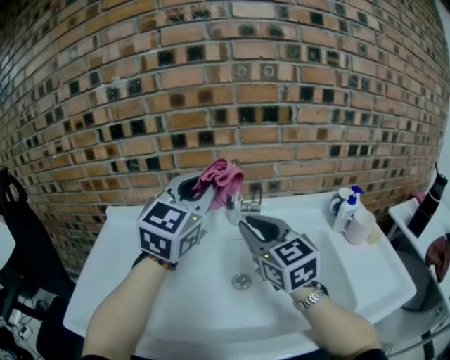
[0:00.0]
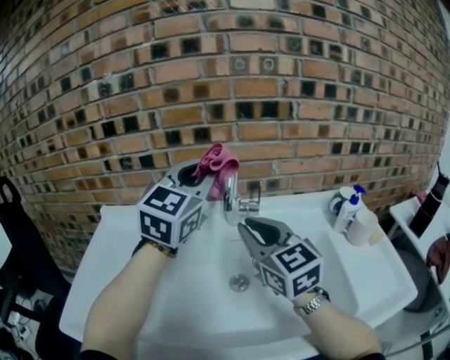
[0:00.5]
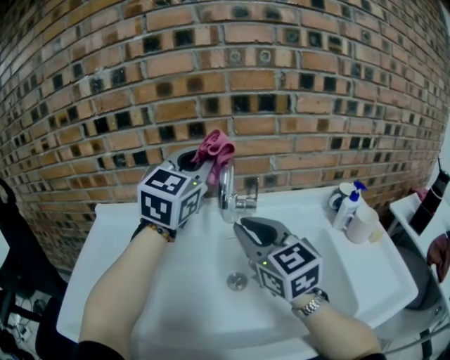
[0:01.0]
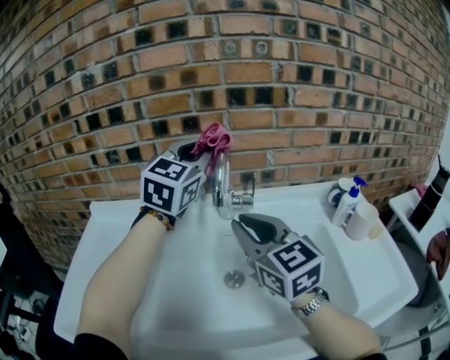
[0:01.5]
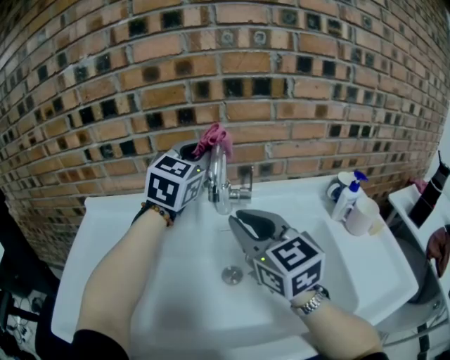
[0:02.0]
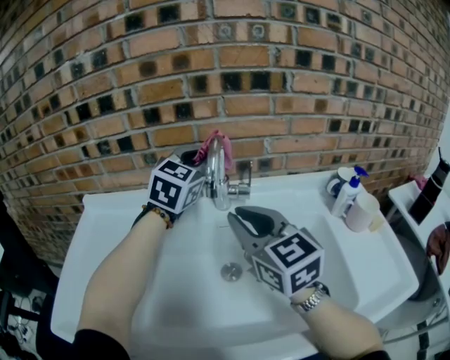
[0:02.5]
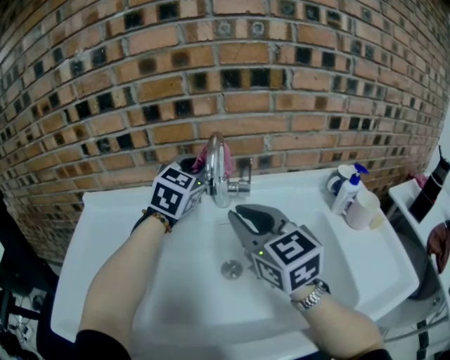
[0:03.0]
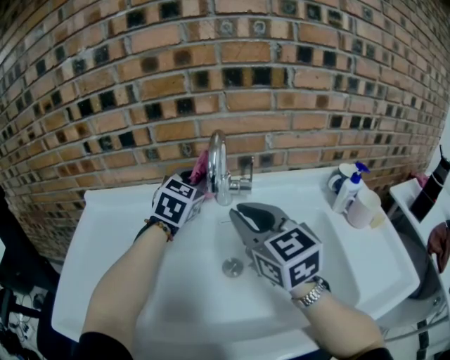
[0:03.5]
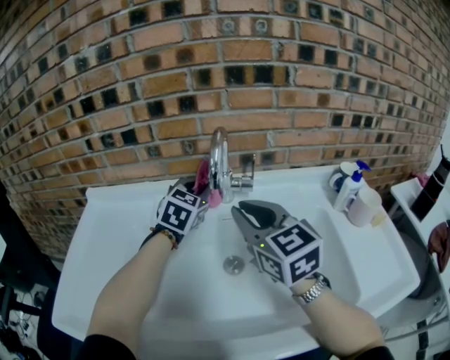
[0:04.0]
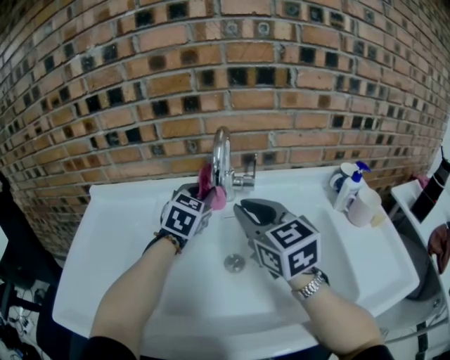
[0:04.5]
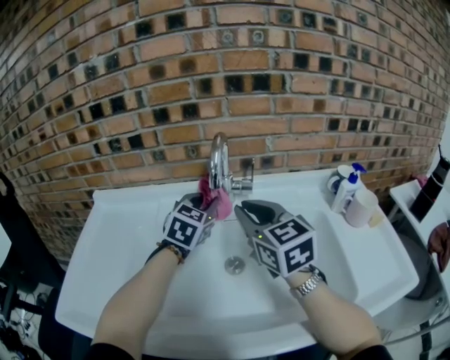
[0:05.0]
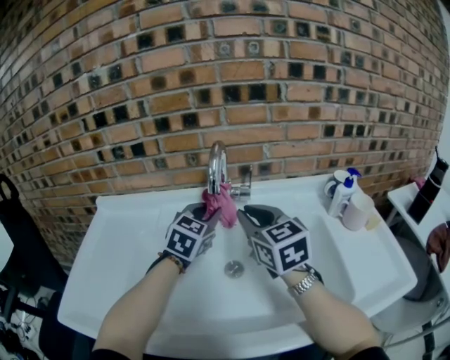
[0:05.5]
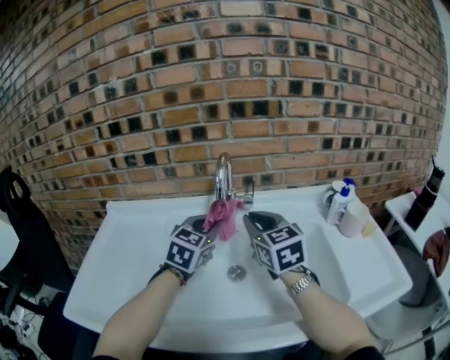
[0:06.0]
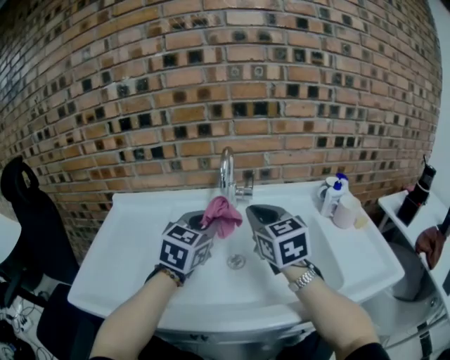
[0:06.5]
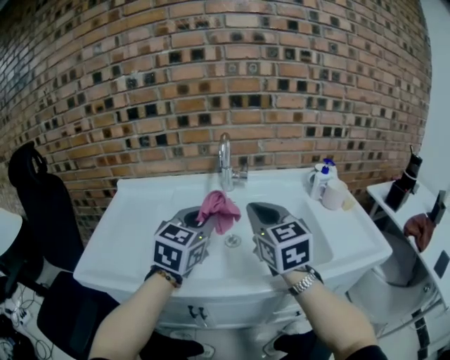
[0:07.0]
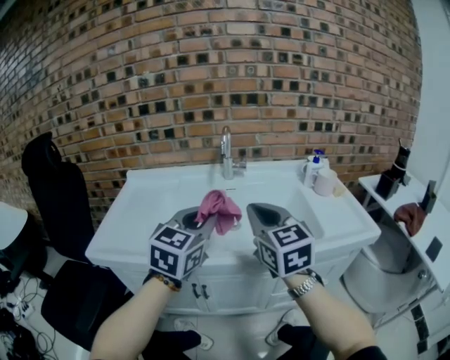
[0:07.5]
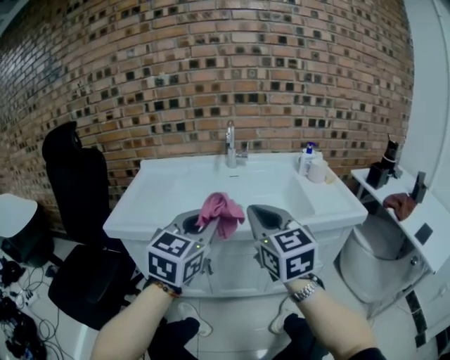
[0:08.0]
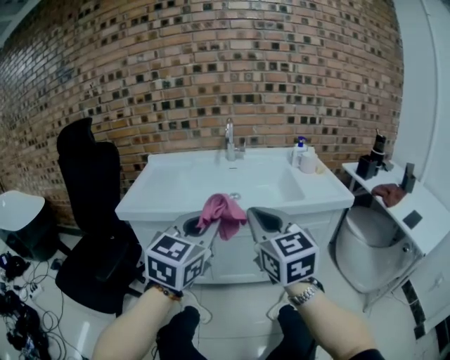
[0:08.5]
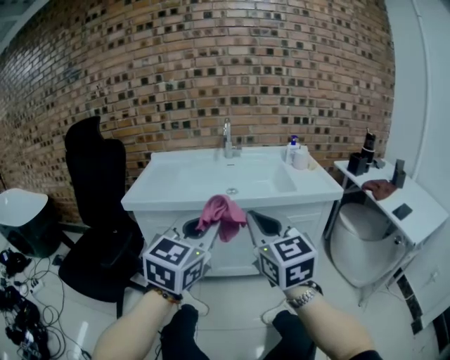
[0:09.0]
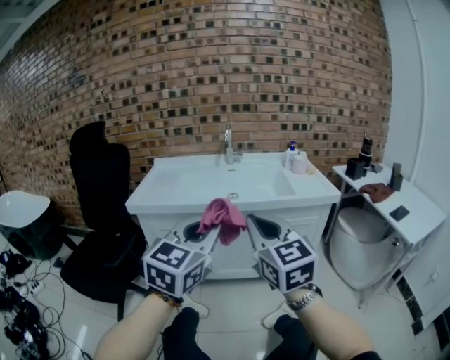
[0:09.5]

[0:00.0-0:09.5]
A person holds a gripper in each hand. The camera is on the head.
0:00.0 to 0:02.0: The left gripper heads forward, covering approximately 15 cm.
0:02.0 to 0:04.0: The left gripper is displaced downward by about 15 cm.
0:04.0 to 0:05.5: The left gripper heads backward, covering some 5 cm.
0:05.5 to 0:07.5: The two grippers go approximately 30 cm backward.
0:07.5 to 0:09.5: The two grippers go some 40 cm backward.

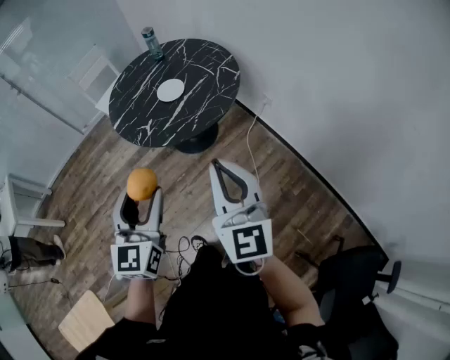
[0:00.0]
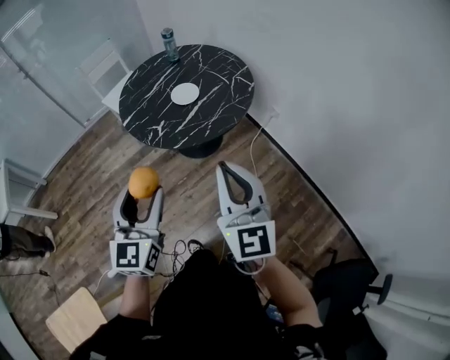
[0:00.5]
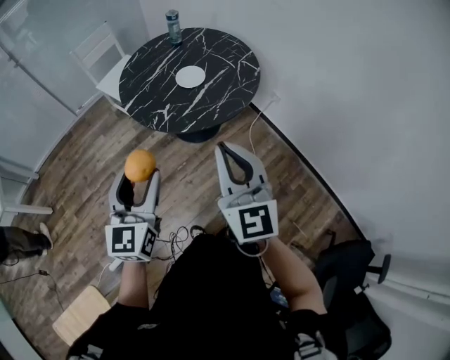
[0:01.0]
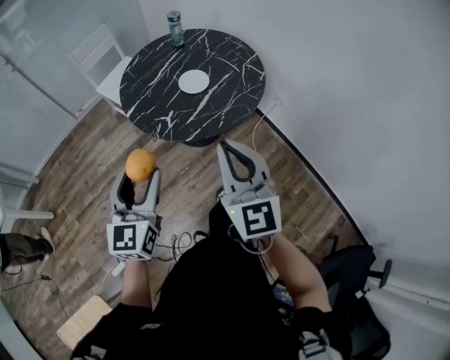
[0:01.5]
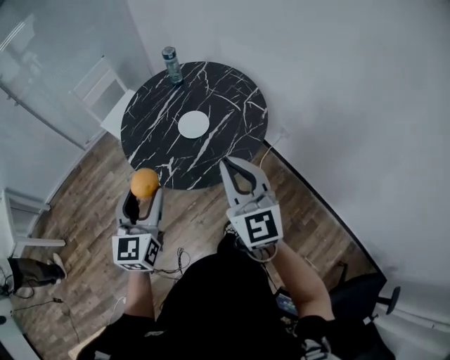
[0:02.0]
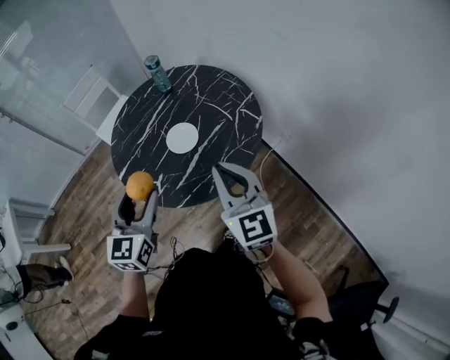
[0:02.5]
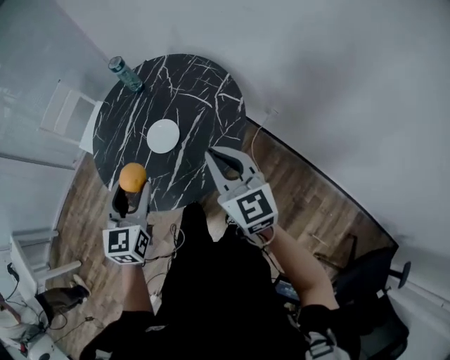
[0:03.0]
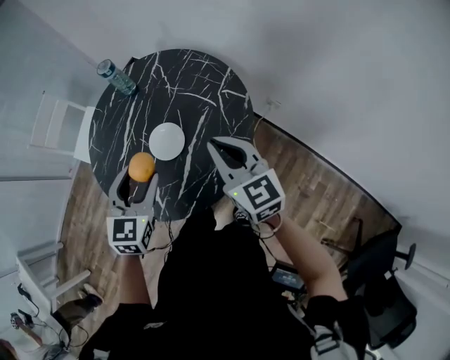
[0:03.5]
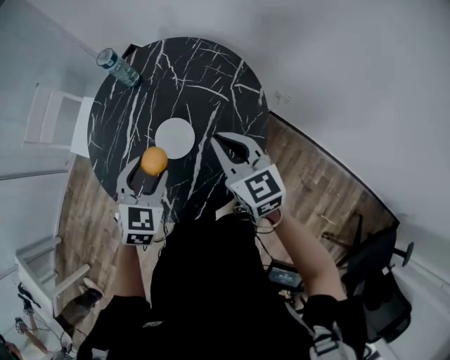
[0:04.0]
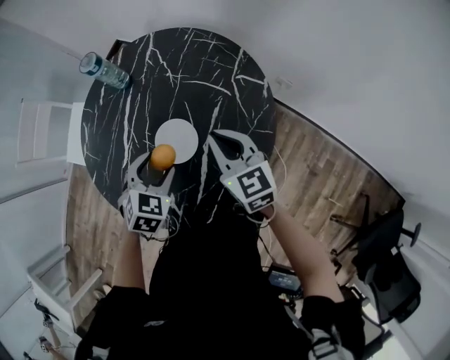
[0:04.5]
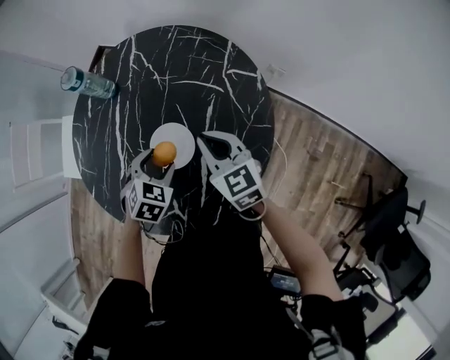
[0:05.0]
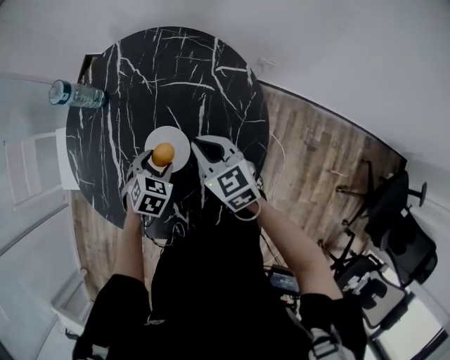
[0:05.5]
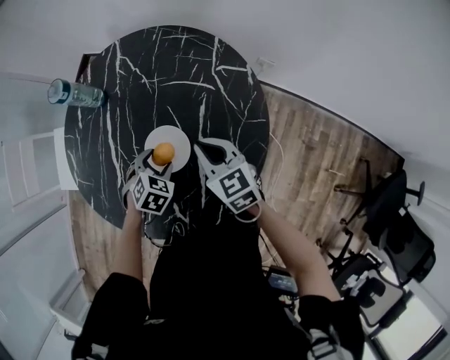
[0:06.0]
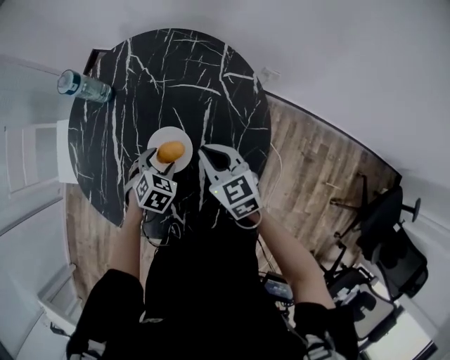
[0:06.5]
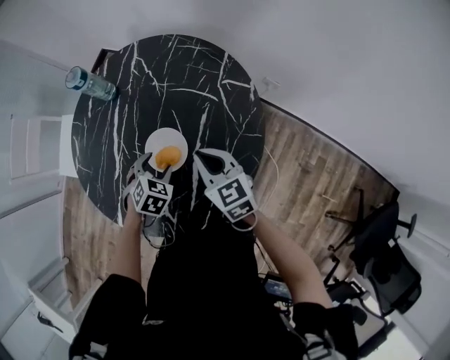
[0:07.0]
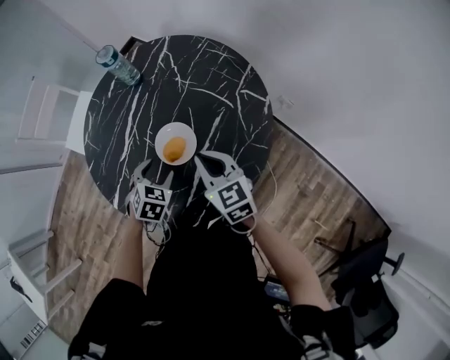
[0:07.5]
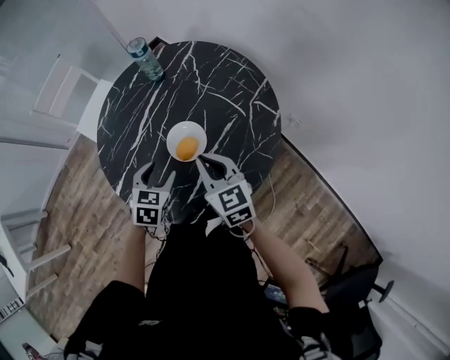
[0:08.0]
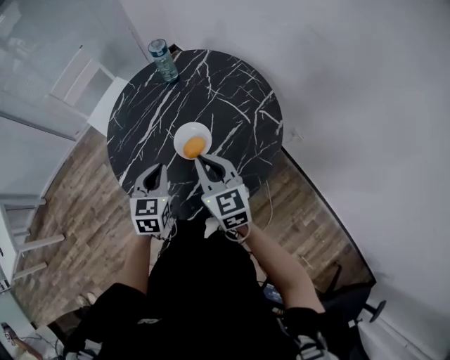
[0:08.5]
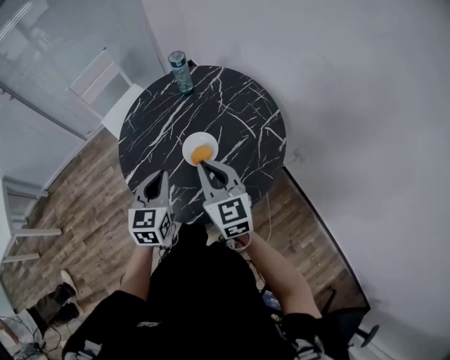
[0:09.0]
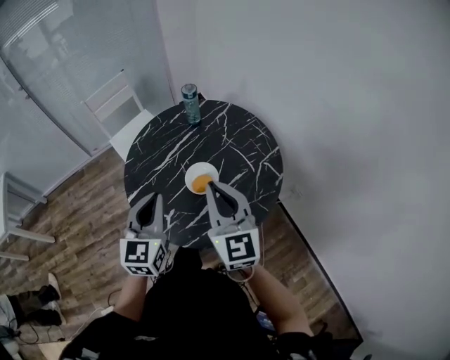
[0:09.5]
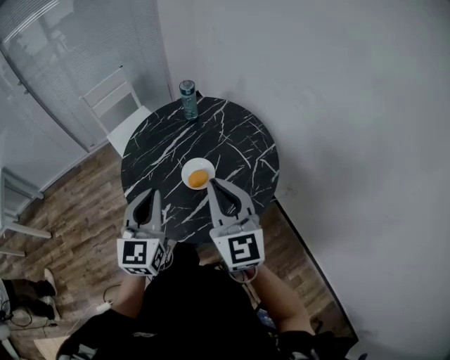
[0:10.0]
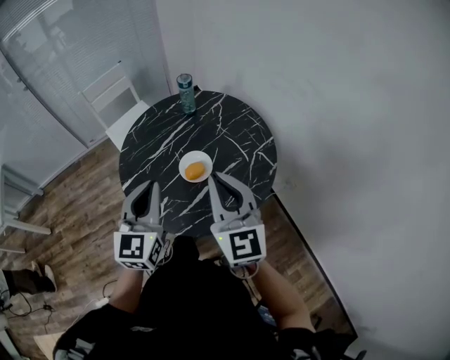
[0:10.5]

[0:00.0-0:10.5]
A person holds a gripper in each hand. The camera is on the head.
0:00.0 to 0:02.0: The grippers both shift forward and to the left by approximately 25 cm.
0:02.0 to 0:04.0: Both grippers travel together forward and downward, some 35 cm. The left gripper tilts its fingers some 30 degrees downward, while the right gripper turns by roughly 20 degrees.
0:04.0 to 0:06.5: The right gripper goes roughly 15 cm downward, while the left gripper shifts roughly 20 cm downward, and rotates about 30 degrees.
0:06.5 to 0:08.5: The two grippers go roughly 15 cm upward. The left gripper tilts its fingers approximately 30 degrees upward, and closes. Meanwhile the right gripper changes its angle by about 30 degrees.
0:08.5 to 0:10.5: The two grippers go some 20 cm upward and backward. The left gripper rotates about 30 degrees. Meanwhile the right gripper swivels approximately 20 degrees.

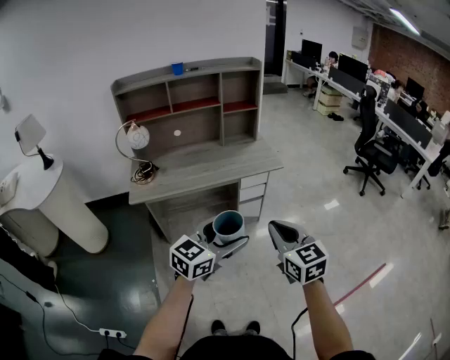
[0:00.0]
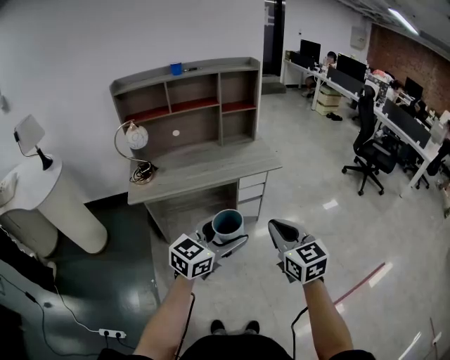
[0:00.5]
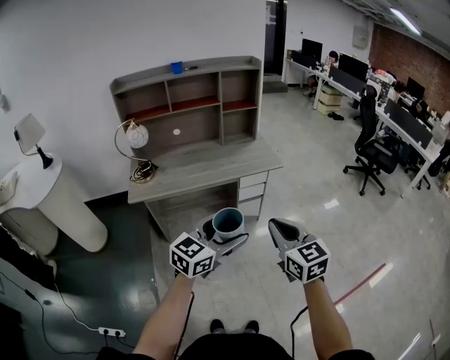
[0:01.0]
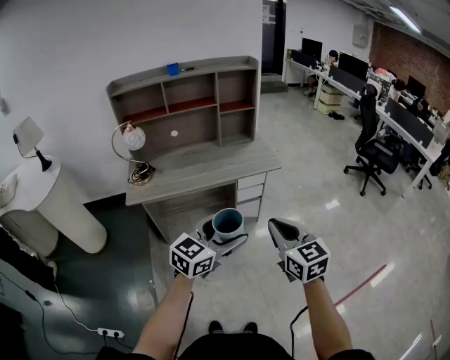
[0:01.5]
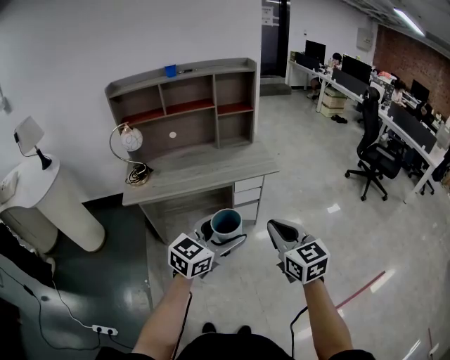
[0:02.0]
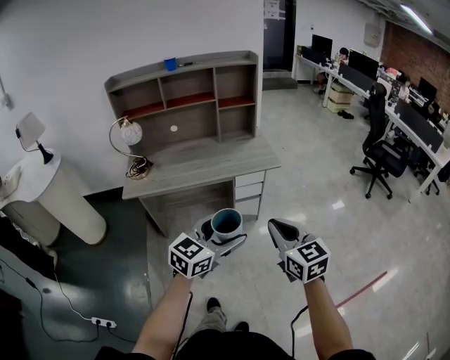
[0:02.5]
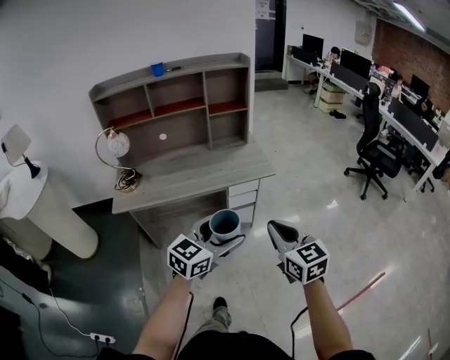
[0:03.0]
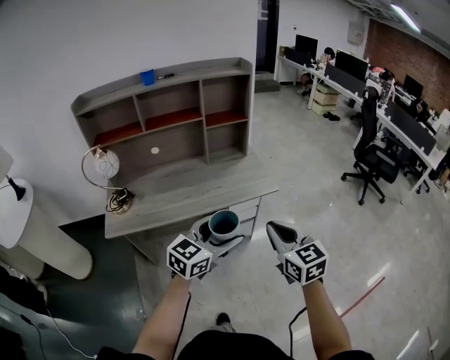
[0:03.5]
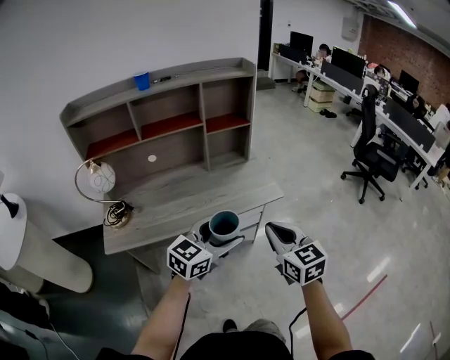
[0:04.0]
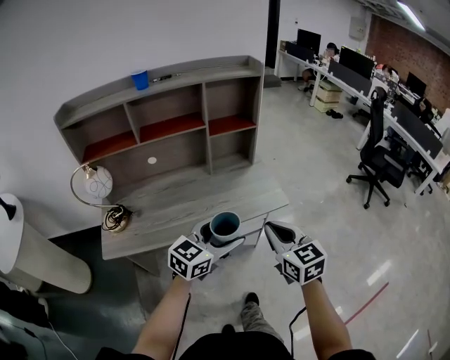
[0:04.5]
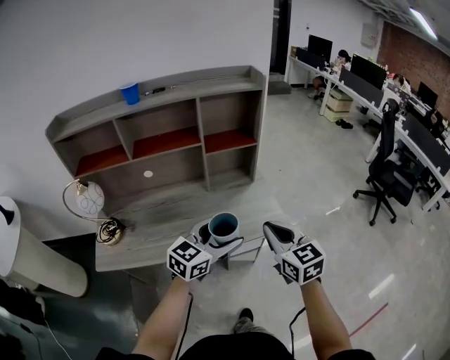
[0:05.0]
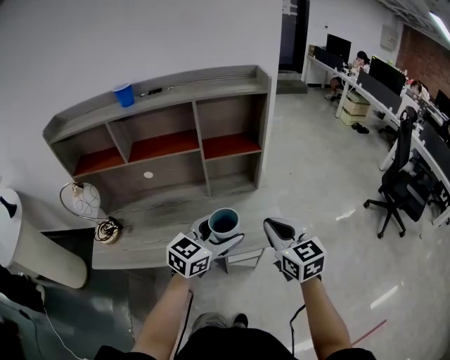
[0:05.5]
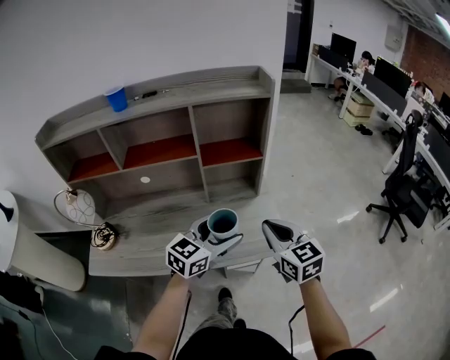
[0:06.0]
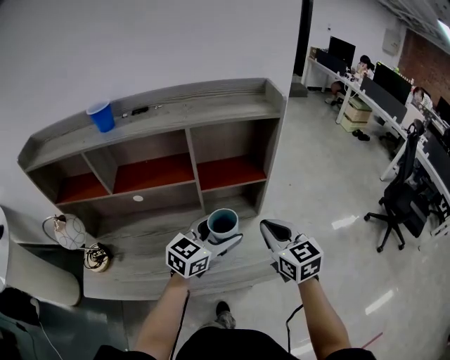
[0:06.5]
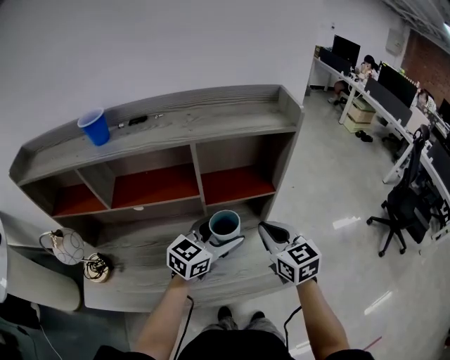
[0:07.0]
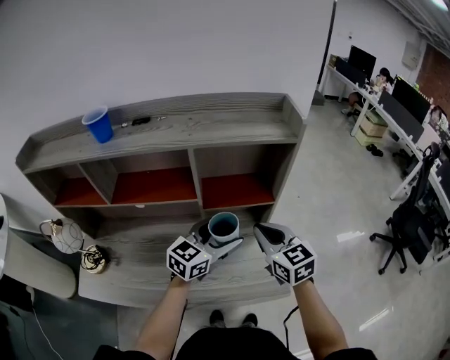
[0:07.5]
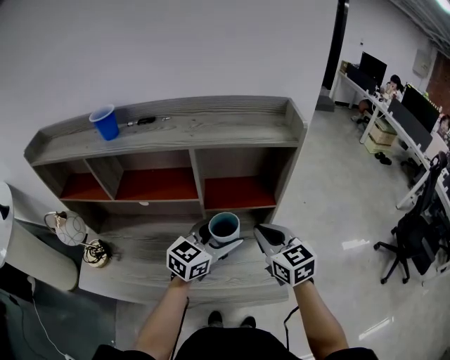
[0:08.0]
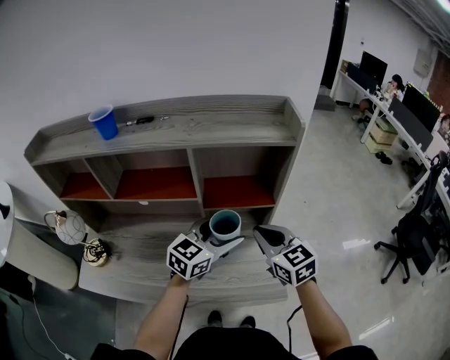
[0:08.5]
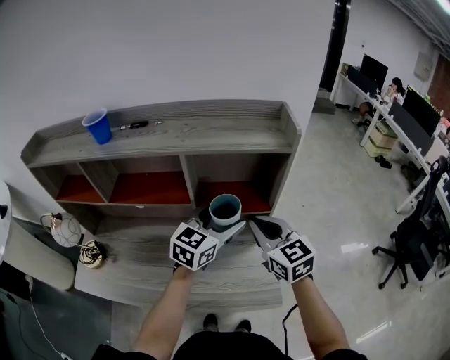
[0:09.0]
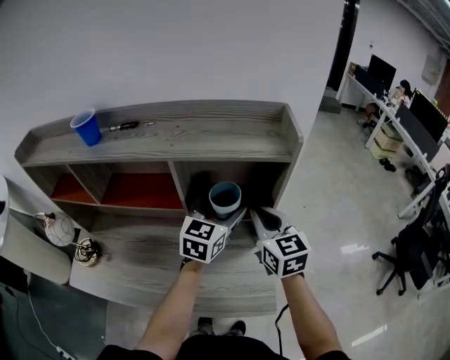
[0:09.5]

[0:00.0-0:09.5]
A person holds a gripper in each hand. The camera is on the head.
0:00.0 to 0:02.0: The left gripper moves some 5 cm. The right gripper goes approximately 5 cm to the right.
0:02.0 to 0:04.0: Both grippers move forward, approximately 25 cm.
0:04.0 to 0:05.5: Both grippers travel together forward, about 25 cm.
0:05.5 to 0:07.5: Both grippers move forward, some 25 cm.
0:07.5 to 0:09.5: The left gripper shifts approximately 15 cm forward and upward, and turns by roughly 20 degrees. The right gripper goes roughly 10 cm forward.
